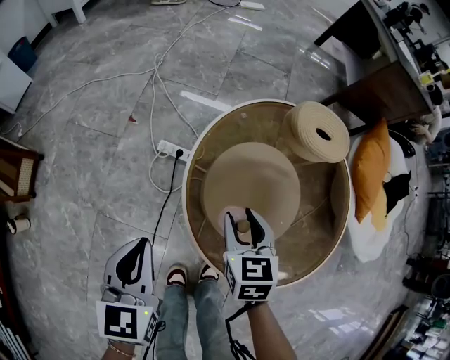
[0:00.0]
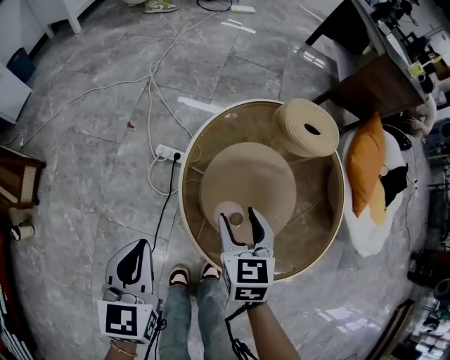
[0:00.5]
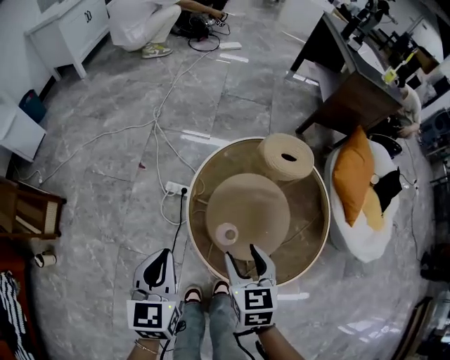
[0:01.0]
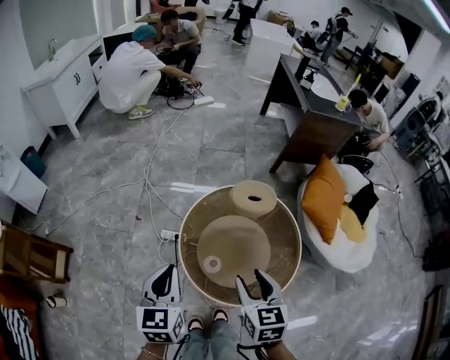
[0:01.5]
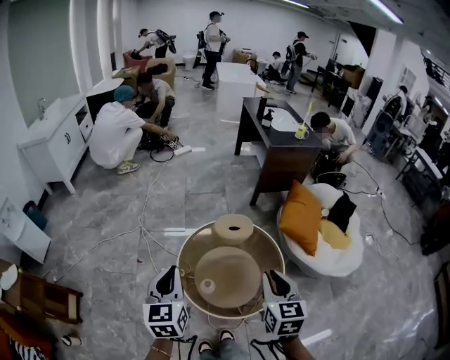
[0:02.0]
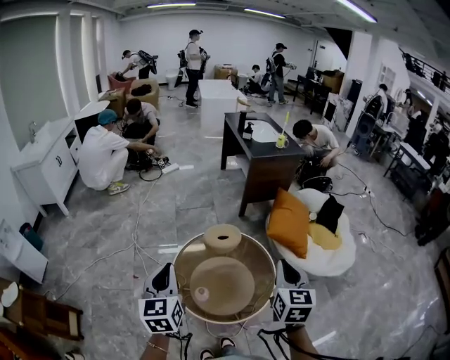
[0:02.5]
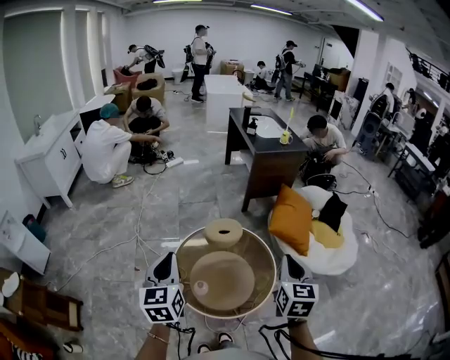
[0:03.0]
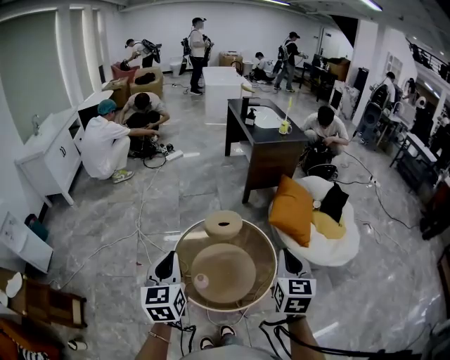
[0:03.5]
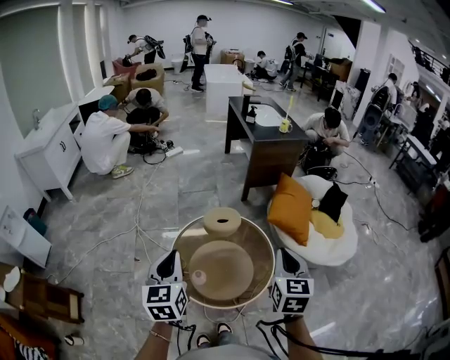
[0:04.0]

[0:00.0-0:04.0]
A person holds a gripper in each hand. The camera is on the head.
0:00.0 to 0:02.0: Both grippers move upward, roughly 40 cm. The right gripper changes its angle by some 30 degrees, and opens and closes again. Meanwhile the left gripper rotates about 20 degrees.
0:02.0 to 0:04.0: The left gripper travels to the right by approximately 5 cm; the right gripper is displaced to the right by some 10 cm.

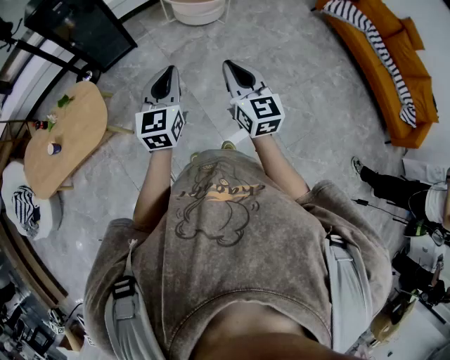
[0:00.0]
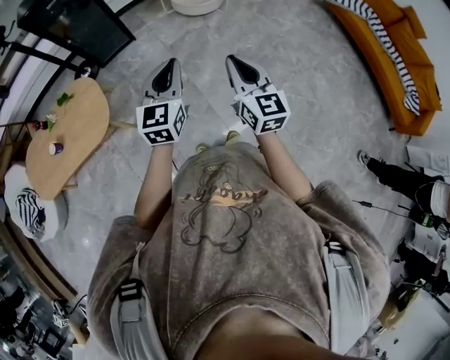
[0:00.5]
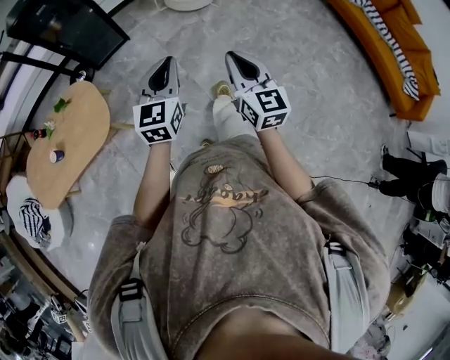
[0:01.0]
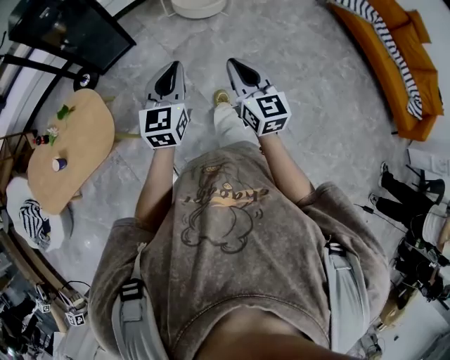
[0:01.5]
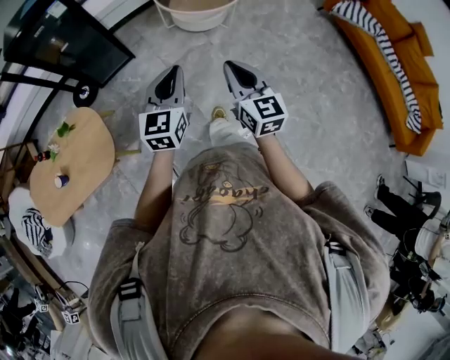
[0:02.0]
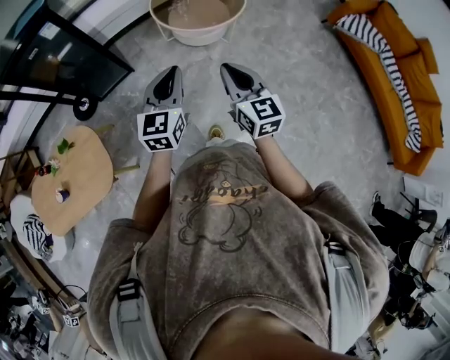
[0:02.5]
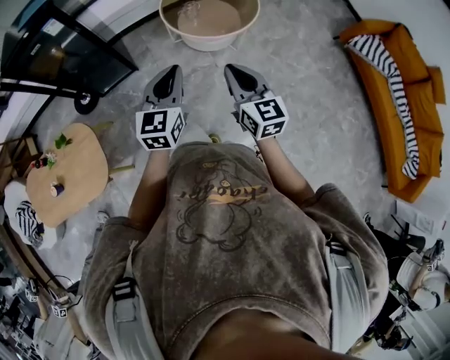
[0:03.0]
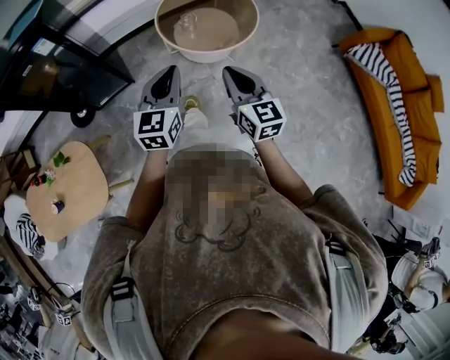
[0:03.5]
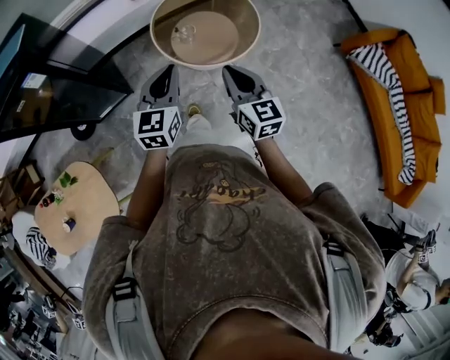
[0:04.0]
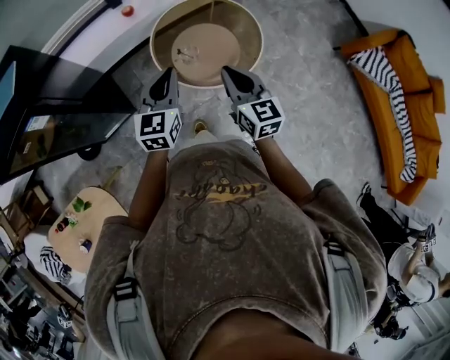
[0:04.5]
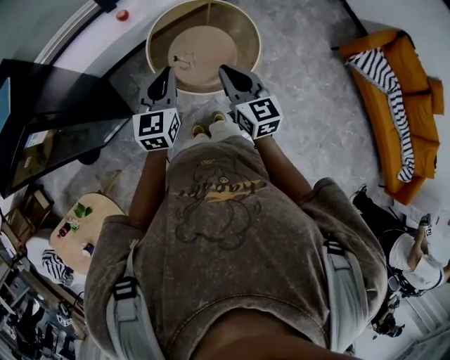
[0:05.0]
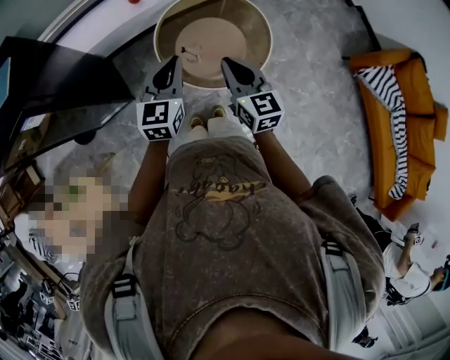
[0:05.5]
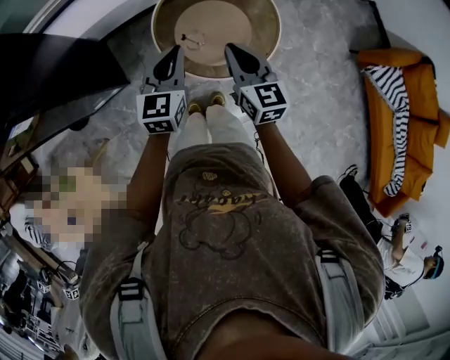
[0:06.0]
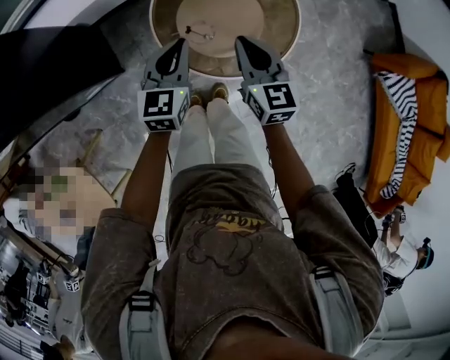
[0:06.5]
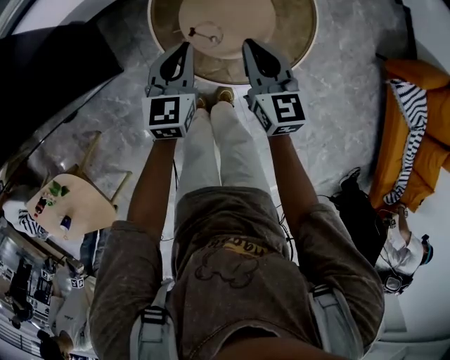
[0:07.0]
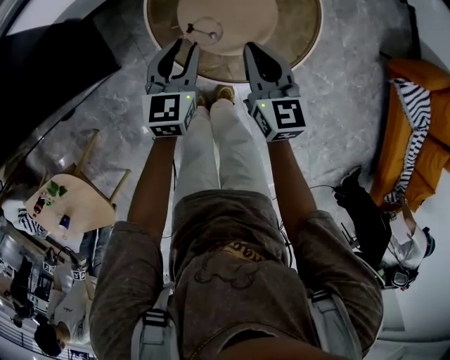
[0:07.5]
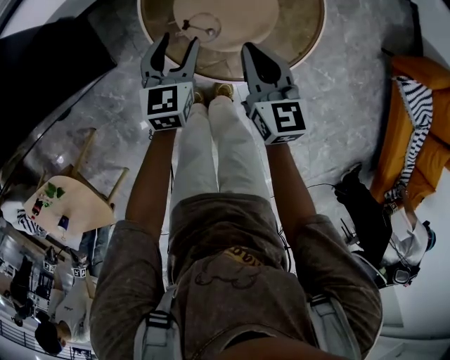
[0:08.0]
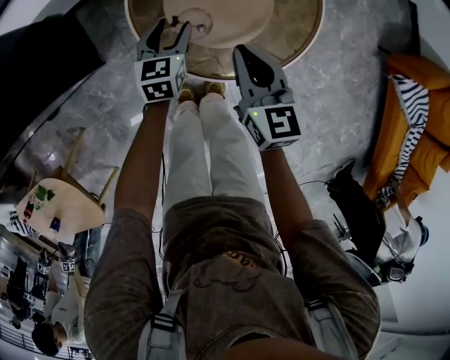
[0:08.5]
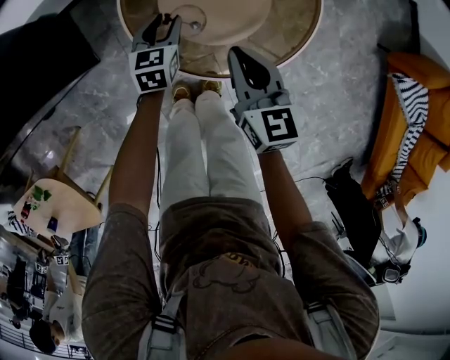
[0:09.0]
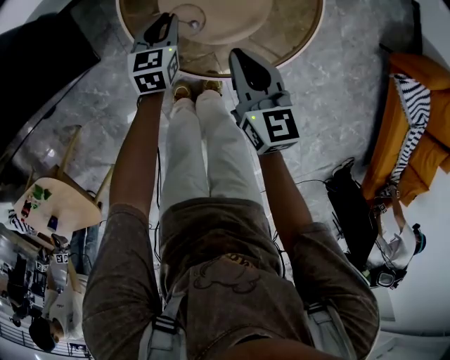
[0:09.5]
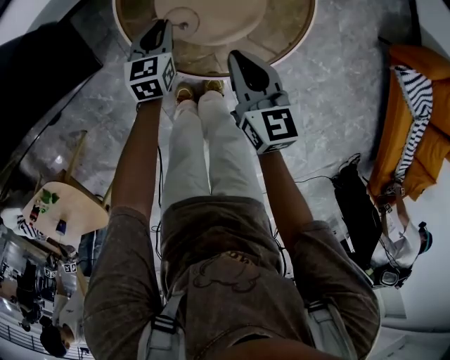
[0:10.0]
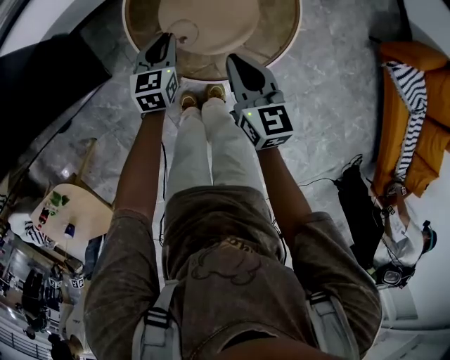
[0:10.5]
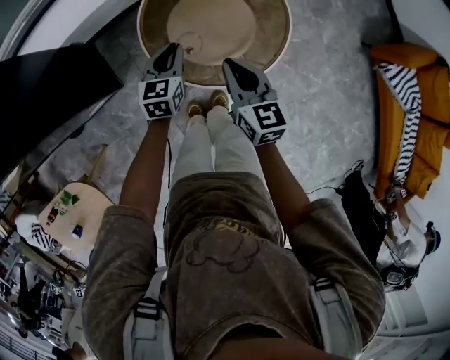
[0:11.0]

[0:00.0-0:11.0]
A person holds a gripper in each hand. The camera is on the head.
0:00.0 to 0:02.0: The two grippers go approximately 25 cm forward.
0:02.0 to 0:03.5: The grippers both shift forward by about 30 cm.
0:03.5 to 0:05.5: Both grippers move forward, about 35 cm.
0:05.5 to 0:07.5: The two grippers go roughly 30 cm downward and forward. The left gripper opens.
0:07.5 to 0:09.0: The left gripper goes roughly 15 cm downward.
0:09.0 to 0:11.0: The right gripper moves upward, about 10 cm; the left gripper moves upward, some 15 cm, and closes.

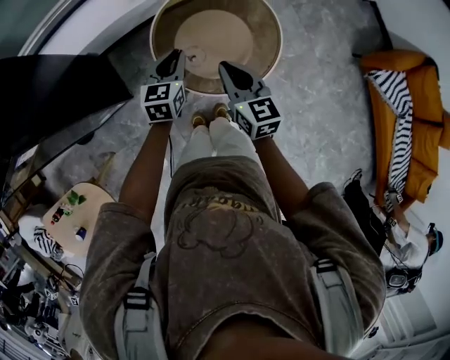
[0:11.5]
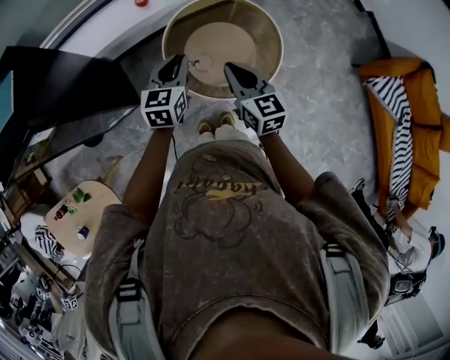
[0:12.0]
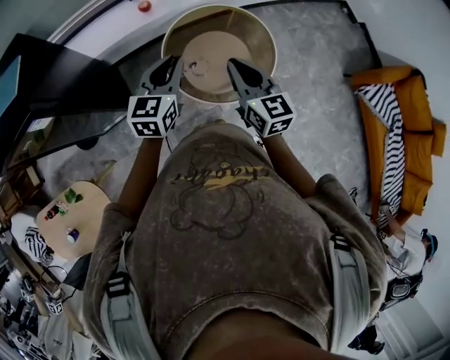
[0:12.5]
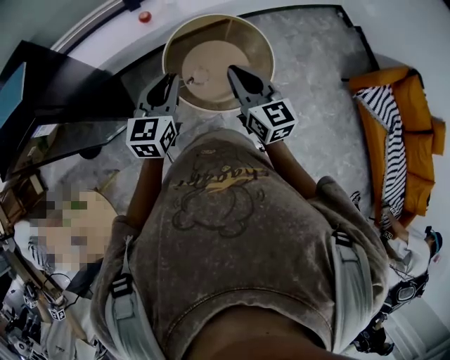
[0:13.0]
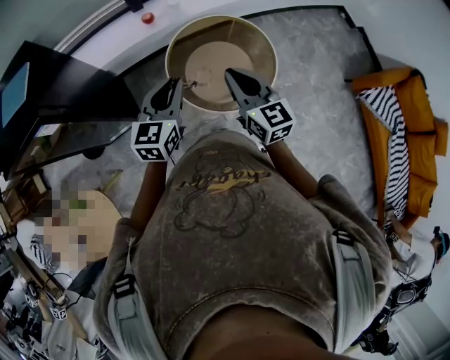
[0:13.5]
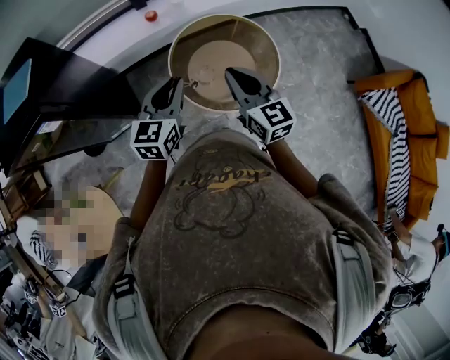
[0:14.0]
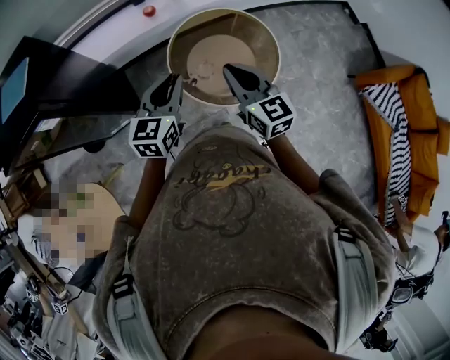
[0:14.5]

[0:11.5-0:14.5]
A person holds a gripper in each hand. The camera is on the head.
0:11.5 to 0:13.0: The right gripper is displaced upward by some 10 cm; the left gripper moves upward and backward, roughly 20 cm.
0:13.0 to 0:14.5: There are only small adjustments of the grippers.

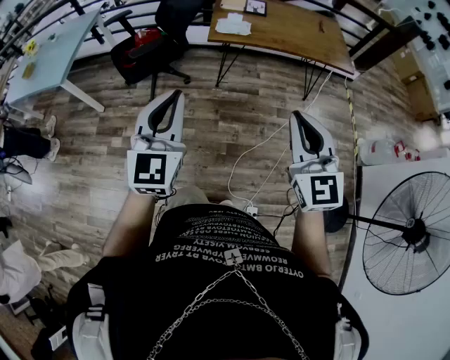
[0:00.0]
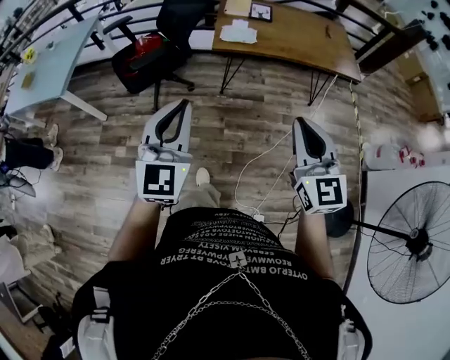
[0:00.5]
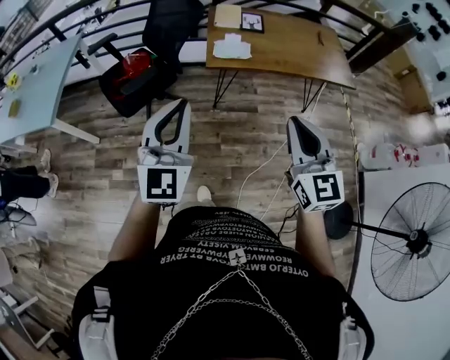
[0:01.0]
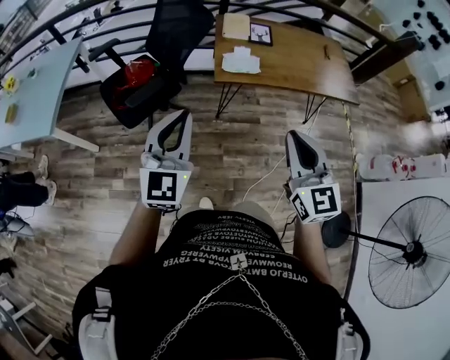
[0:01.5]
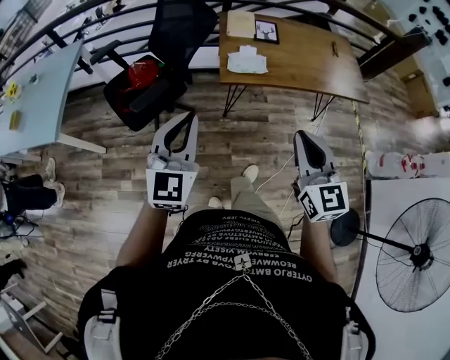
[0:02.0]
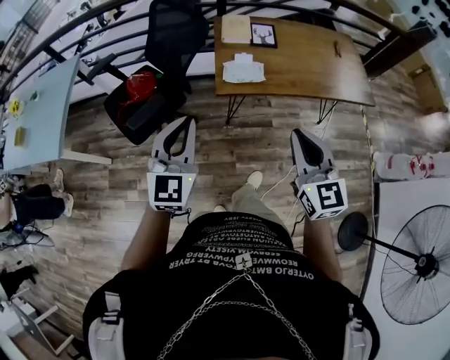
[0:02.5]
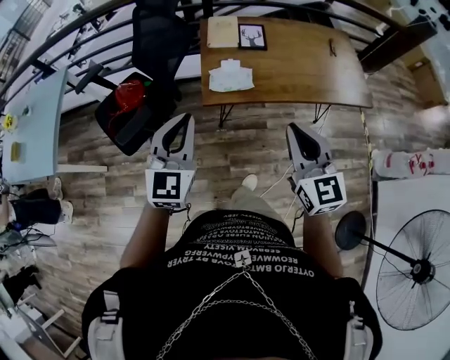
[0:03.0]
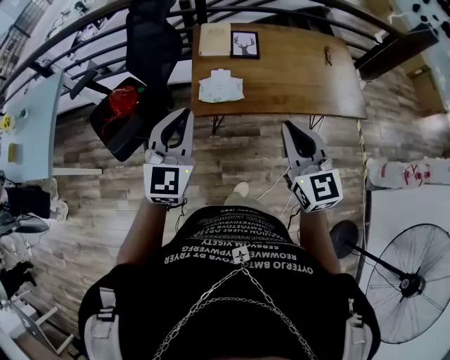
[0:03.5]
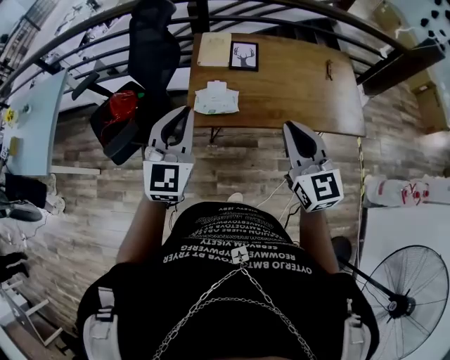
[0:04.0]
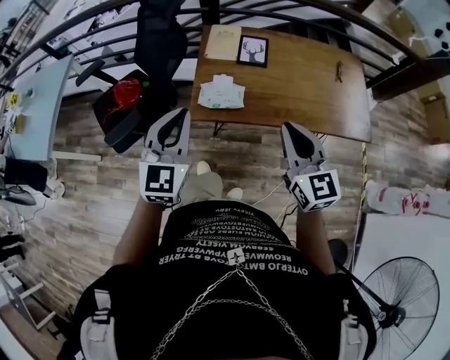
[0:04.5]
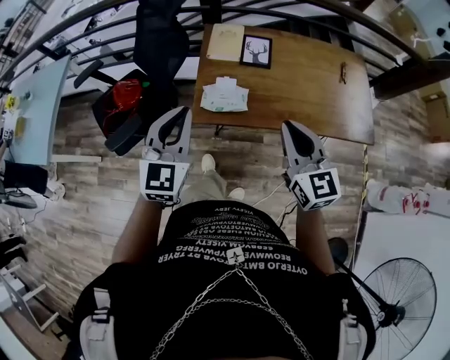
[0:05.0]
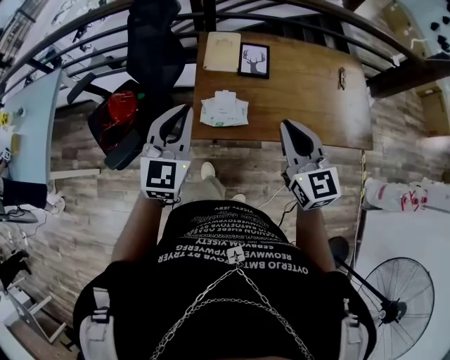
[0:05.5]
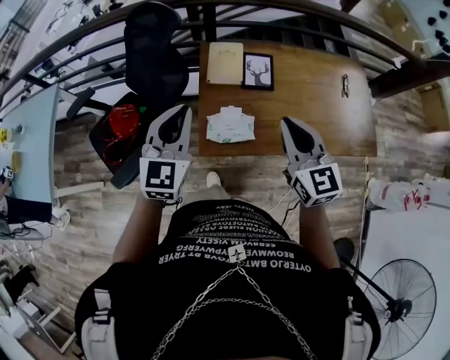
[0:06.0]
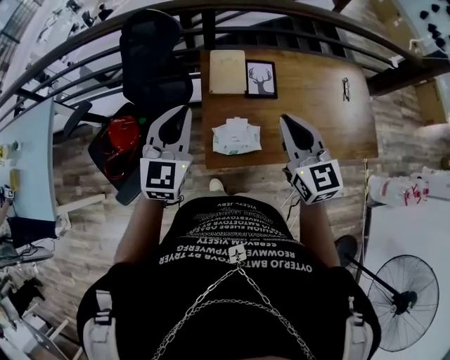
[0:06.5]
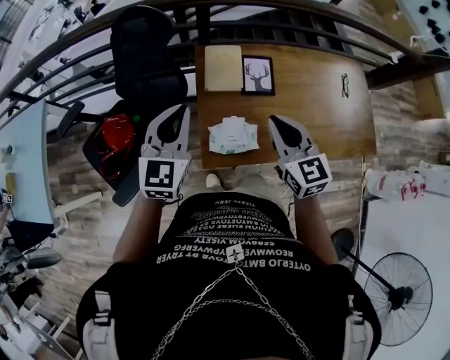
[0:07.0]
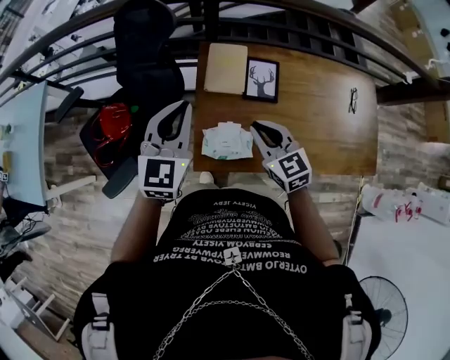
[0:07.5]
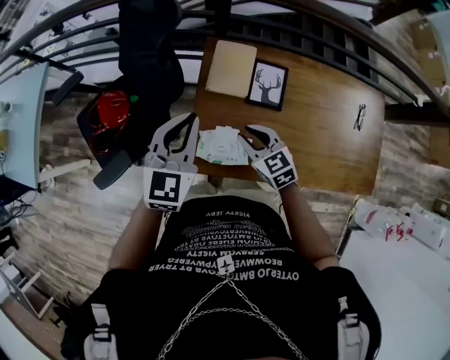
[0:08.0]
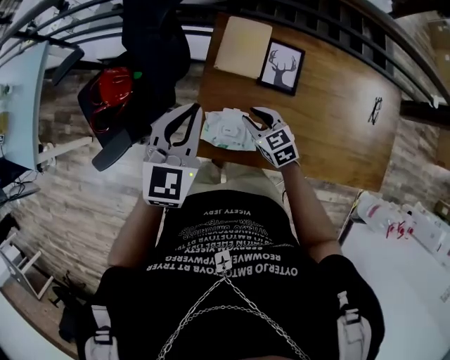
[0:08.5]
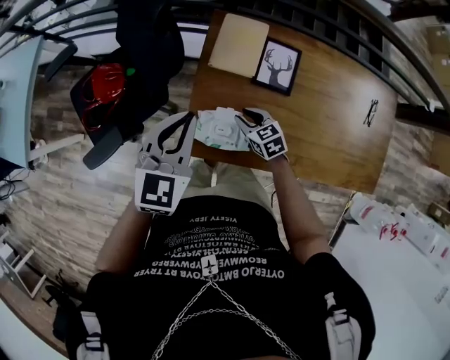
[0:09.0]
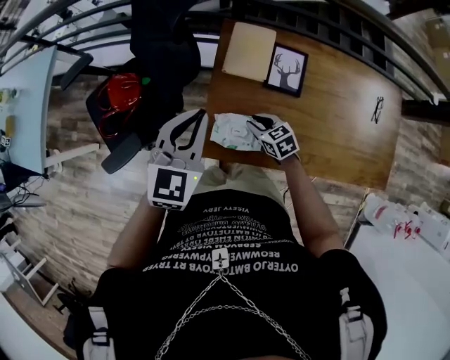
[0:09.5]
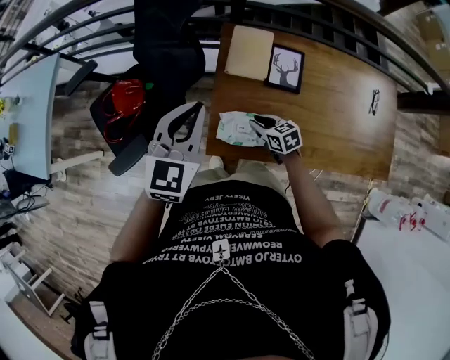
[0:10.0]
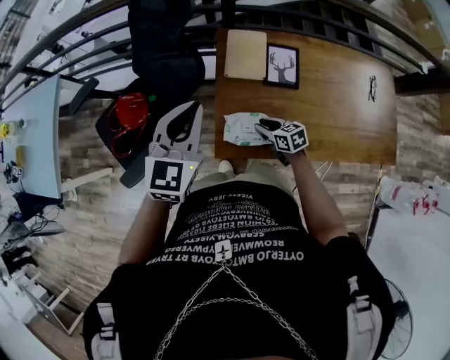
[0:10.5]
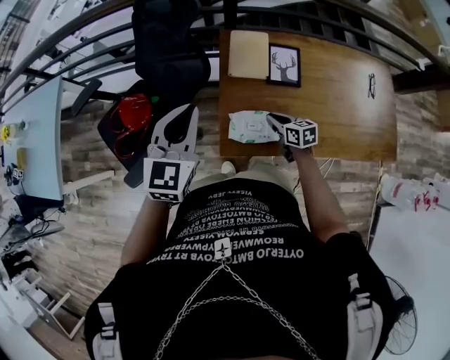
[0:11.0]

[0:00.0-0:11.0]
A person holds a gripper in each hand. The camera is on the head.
0:00.0 to 0:02.0: Both grippers travel together forward, some 30 cm.
0:02.0 to 0:03.5: The two grippers go approximately 25 cm forward and to the right.
0:03.5 to 0:05.5: Both grippers move forward, roughly 15 cm.
0:05.5 to 0:07.5: The right gripper travels forward, downward and to the left by some 25 cm, and changes its angle by some 20 degrees. Meanwhile the left gripper travels forward by roughly 20 cm.
0:07.5 to 0:09.0: The right gripper goes roughly 25 cm downward, turns by approximately 20 degrees, and opens up. Meanwhile the left gripper goes about 10 cm downward.
0:09.0 to 0:11.0: The left gripper moves to the left and upward, roughly 10 cm; the right gripper rotates some 30 degrees, and closes its fingers.
